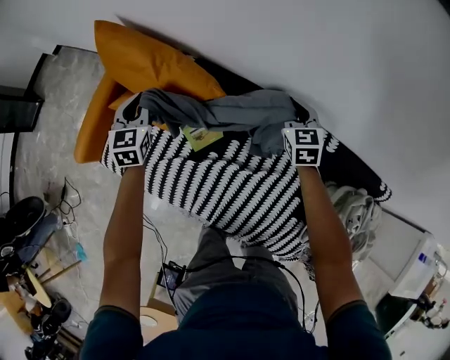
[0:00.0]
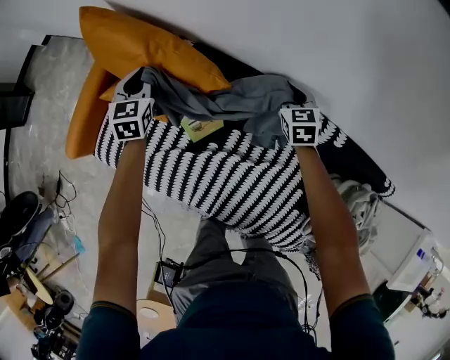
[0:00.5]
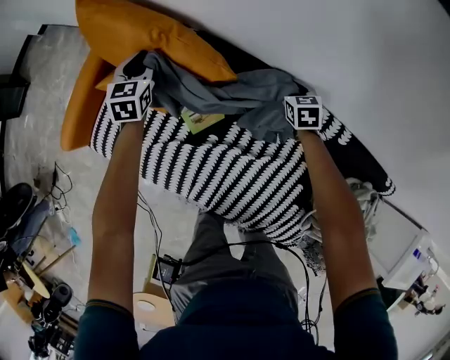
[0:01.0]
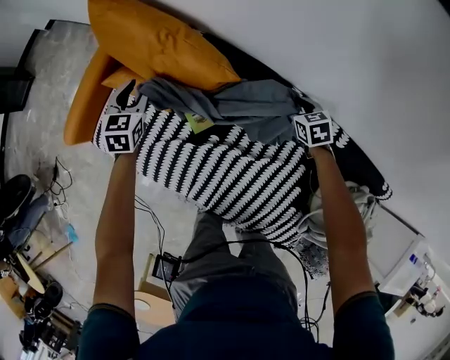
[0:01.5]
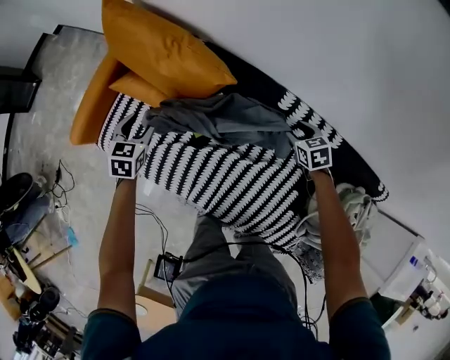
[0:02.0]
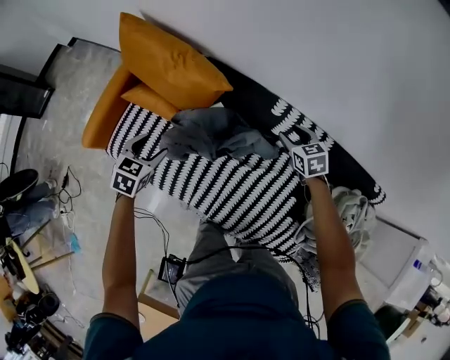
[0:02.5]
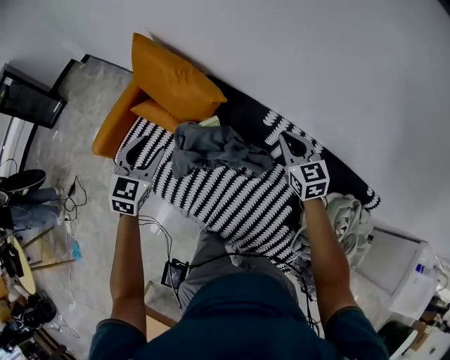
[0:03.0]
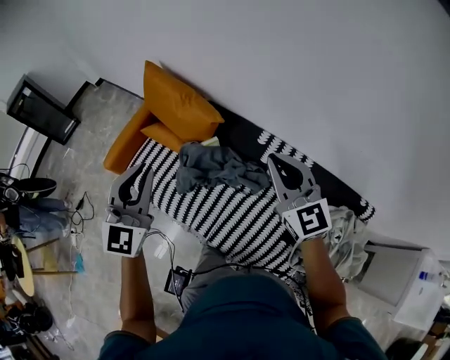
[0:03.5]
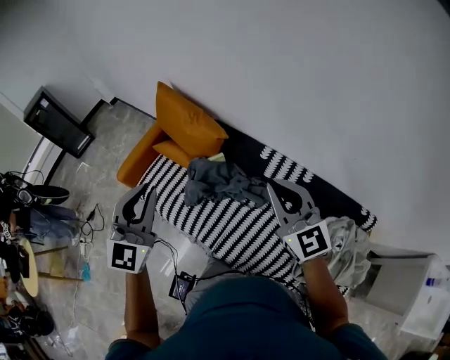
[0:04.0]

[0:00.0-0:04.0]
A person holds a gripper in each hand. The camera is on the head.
0:00.0 to 0:02.0: The right gripper goes some 15 cm downward and backward, rotates about 30 degrees, and opens up; the left gripper goes roughly 15 cm backward and downward, rotates roughly 20 degrees, and opens.
0:02.0 to 0:04.0: The two grippers go some 60 cm upward and backward. The left gripper points its fingers about 40 degrees further upward, and closes its fingers; the right gripper points its fingers some 60 degrees further upward, and closes up.

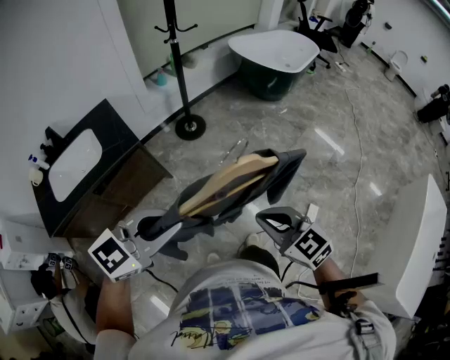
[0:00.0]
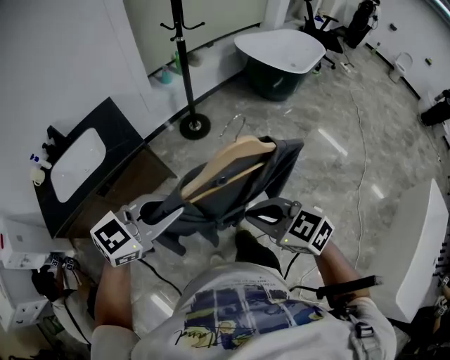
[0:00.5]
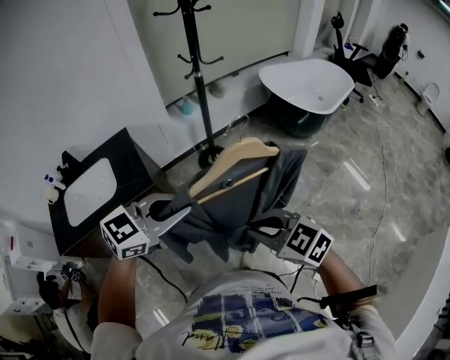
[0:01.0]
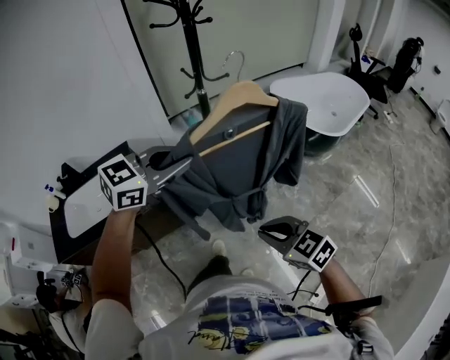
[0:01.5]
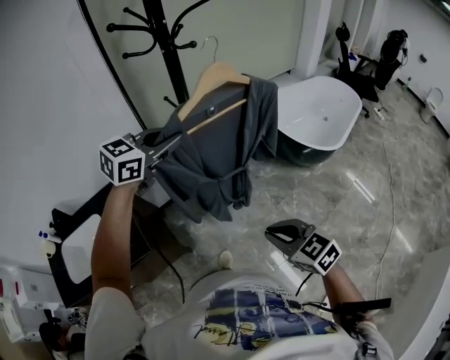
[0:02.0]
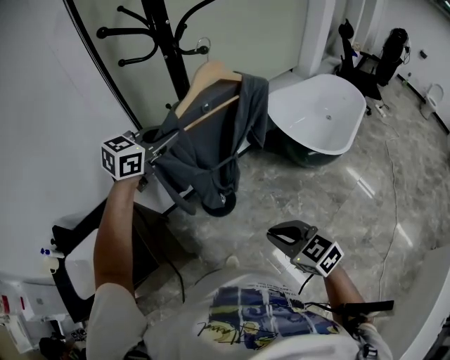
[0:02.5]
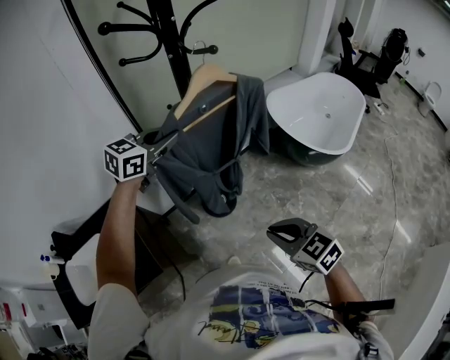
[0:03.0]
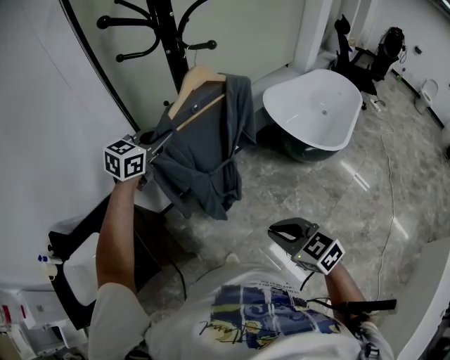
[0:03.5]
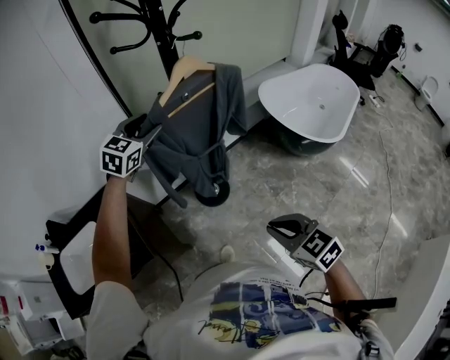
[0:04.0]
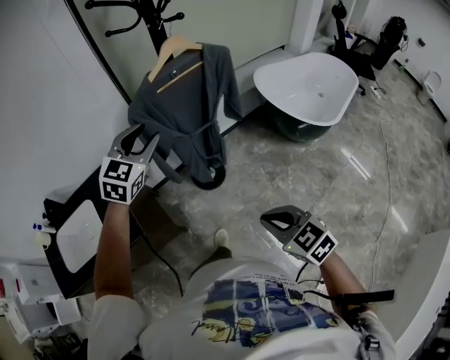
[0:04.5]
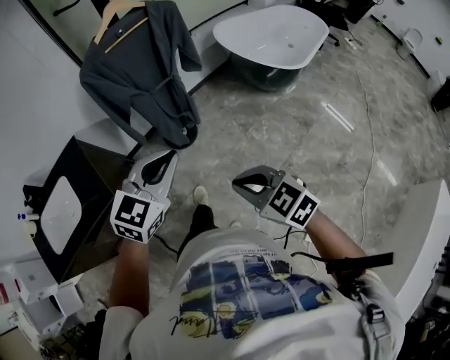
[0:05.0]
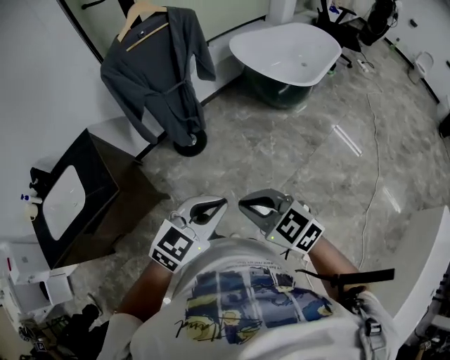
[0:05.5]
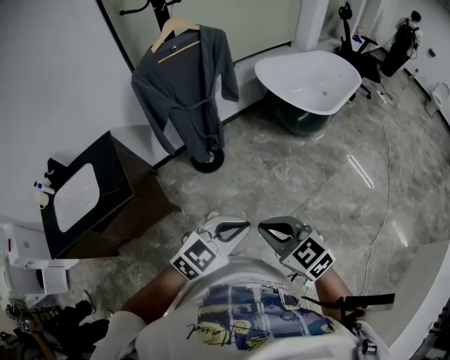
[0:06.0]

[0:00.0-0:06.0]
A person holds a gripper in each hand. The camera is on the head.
0:00.0 to 0:02.0: The two grippers travel together, forward, roughly 60 cm.
0:02.0 to 0:04.0: The left gripper travels forward, to the left and downward by some 20 cm, swivels about 20 degrees, and opens its fingers; the right gripper is displaced forward by roughly 5 cm.
0:04.0 to 0:06.0: The left gripper moves backward and to the right, roughly 60 cm, changes its angle by roughly 30 degrees, and closes; the right gripper is displaced backward by some 20 cm.

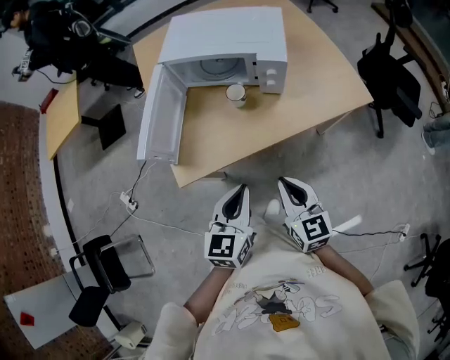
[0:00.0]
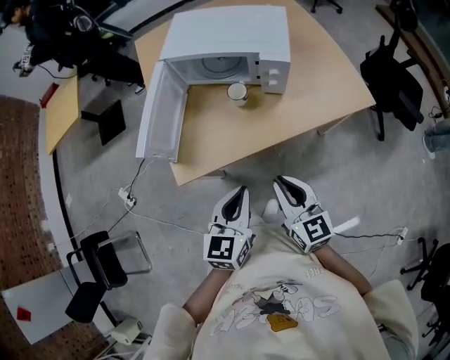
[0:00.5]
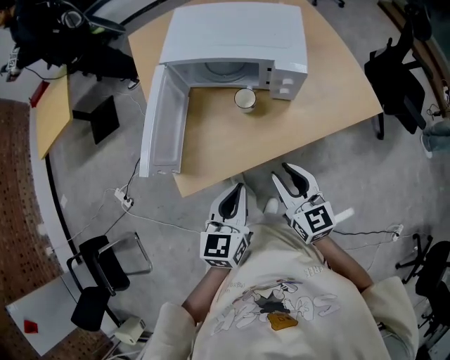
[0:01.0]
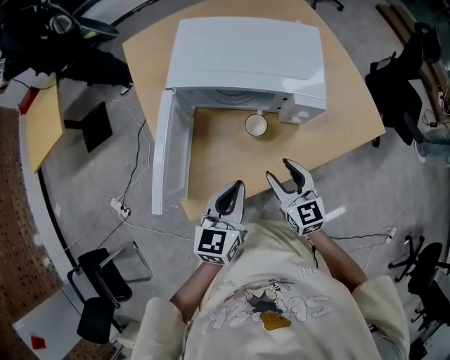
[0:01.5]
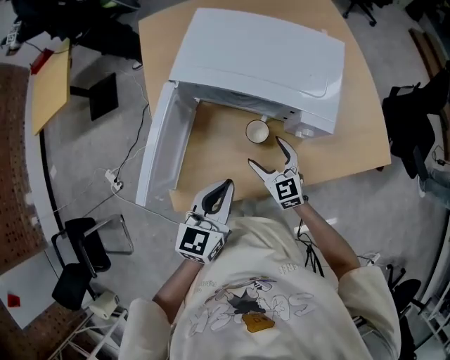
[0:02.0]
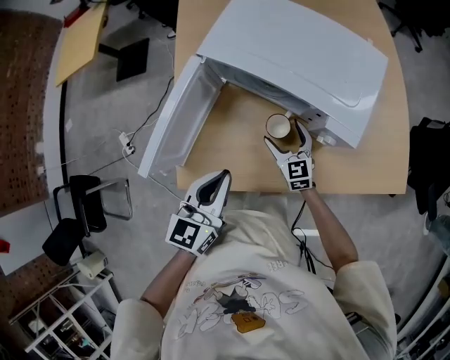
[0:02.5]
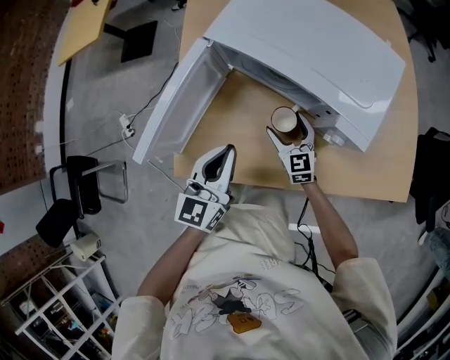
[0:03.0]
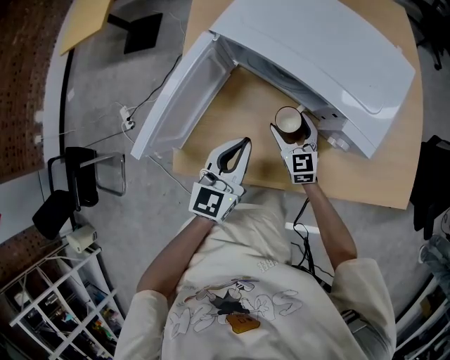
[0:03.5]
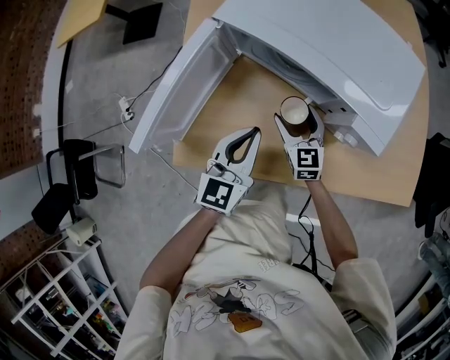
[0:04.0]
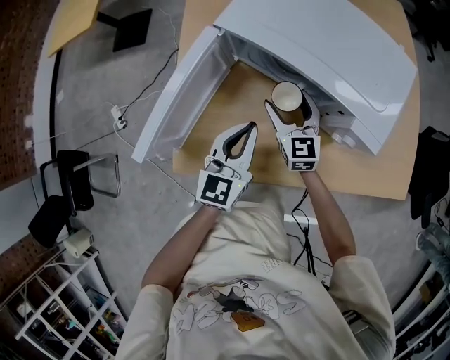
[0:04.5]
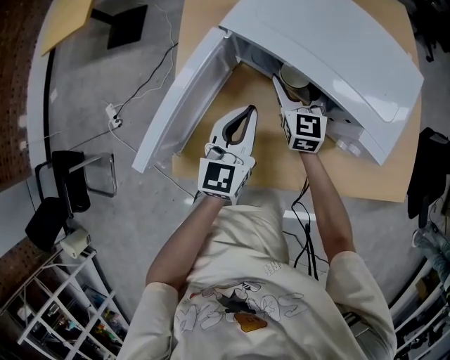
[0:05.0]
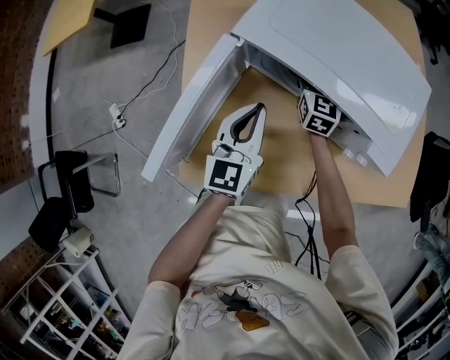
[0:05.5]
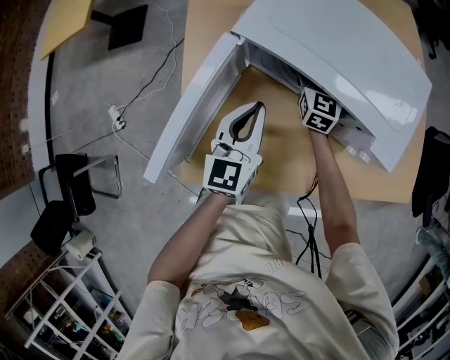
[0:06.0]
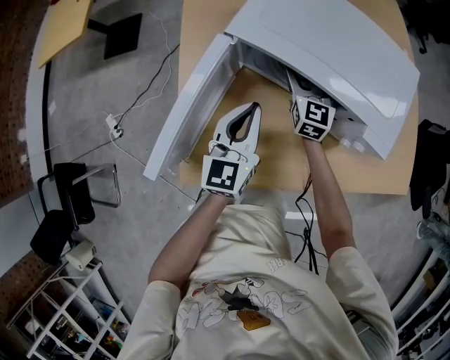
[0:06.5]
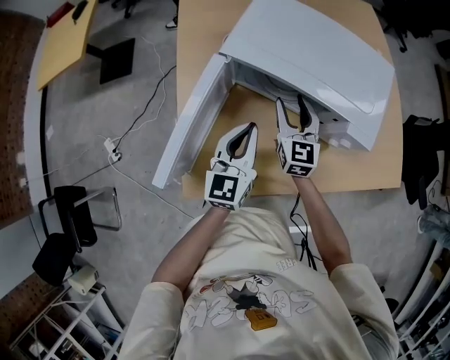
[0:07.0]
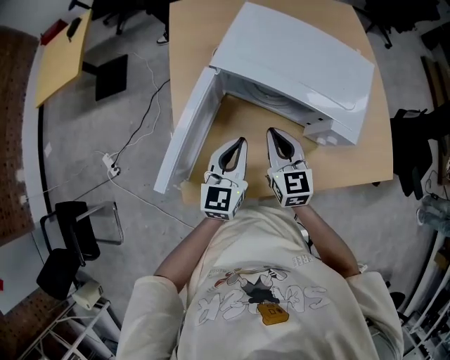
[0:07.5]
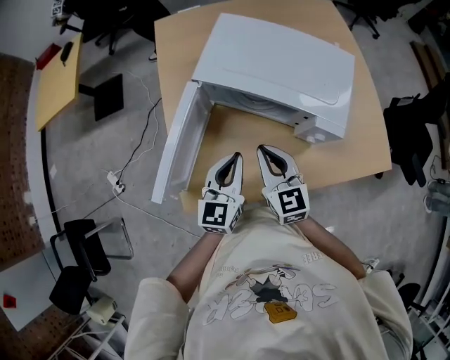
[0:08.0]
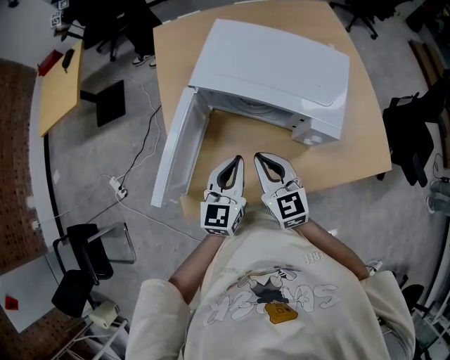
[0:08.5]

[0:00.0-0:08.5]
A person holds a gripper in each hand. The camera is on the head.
0:00.0 to 0:02.0: Both grippers travel together forward, approximately 25 cm. The right gripper turns by some 20 degrees, and opens.
0:02.0 to 0:04.0: Both grippers move forward and downward, roughly 10 cm. The left gripper swivels roughly 20 degrees.
0:04.0 to 0:06.5: The right gripper travels forward and upward by about 20 cm, and changes its angle by approximately 20 degrees. Meanwhile the left gripper heads forward and to the left, covering some 10 cm.
0:06.5 to 0:08.5: The left gripper travels backward by roughly 10 cm. The right gripper goes about 25 cm backward and upward, turns by roughly 20 degrees, and closes up.

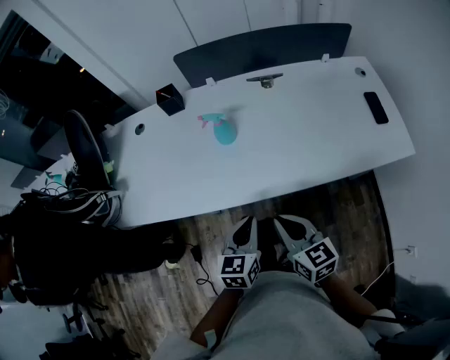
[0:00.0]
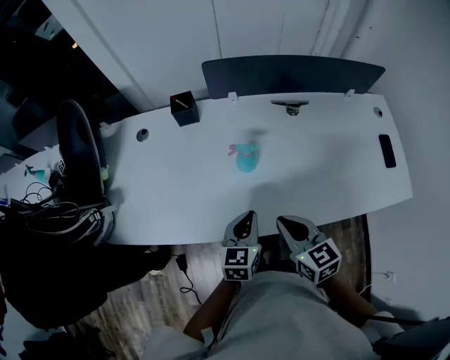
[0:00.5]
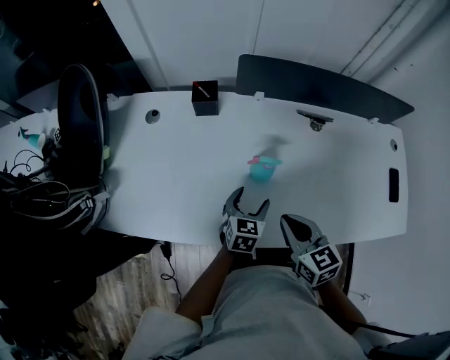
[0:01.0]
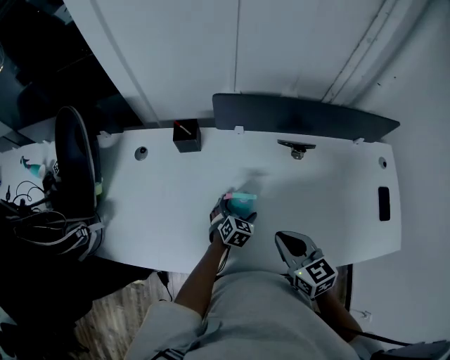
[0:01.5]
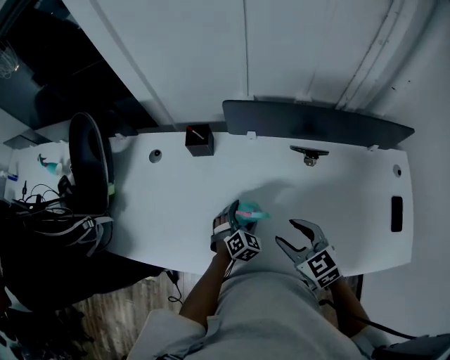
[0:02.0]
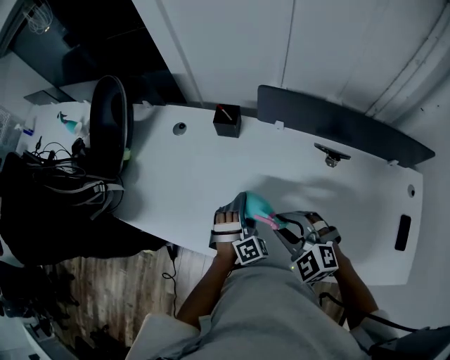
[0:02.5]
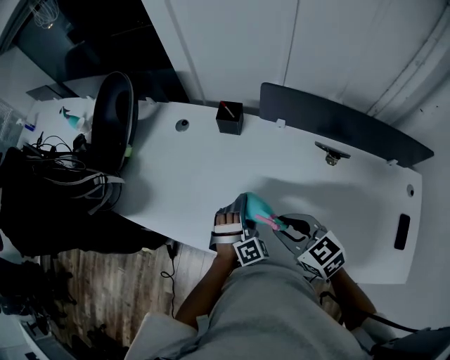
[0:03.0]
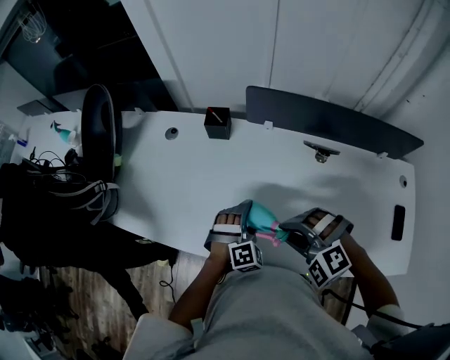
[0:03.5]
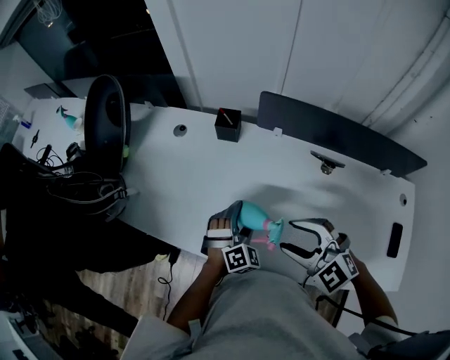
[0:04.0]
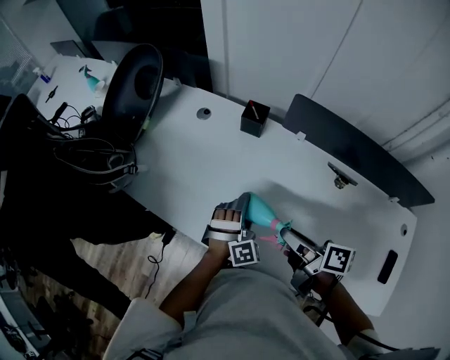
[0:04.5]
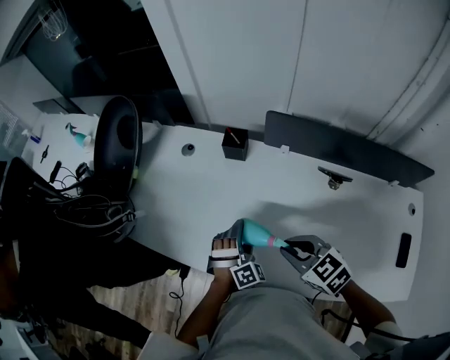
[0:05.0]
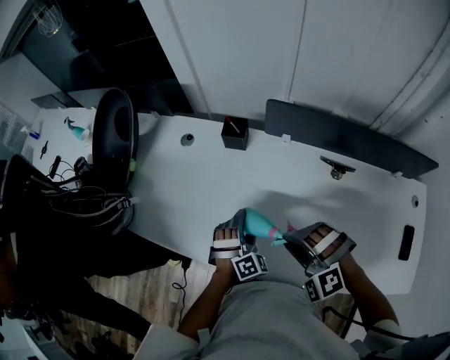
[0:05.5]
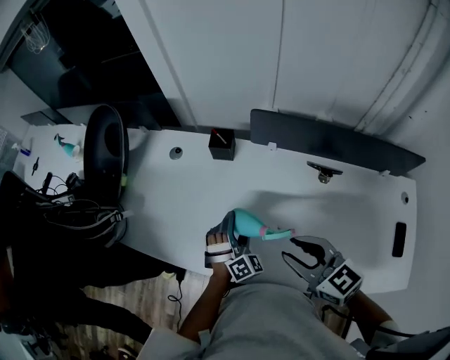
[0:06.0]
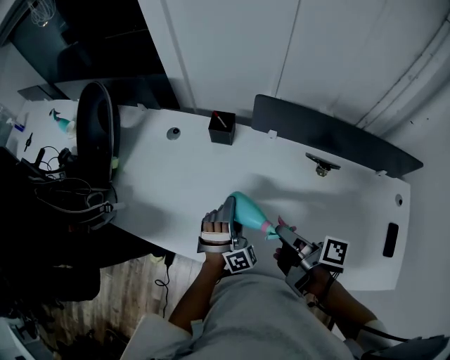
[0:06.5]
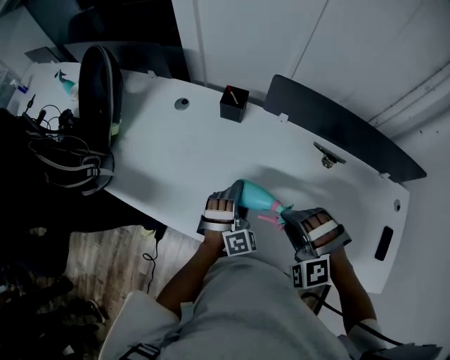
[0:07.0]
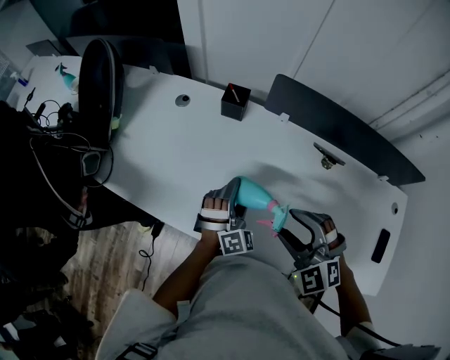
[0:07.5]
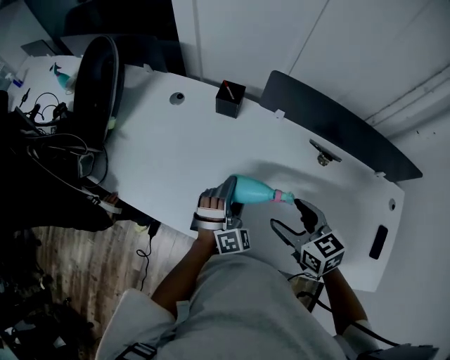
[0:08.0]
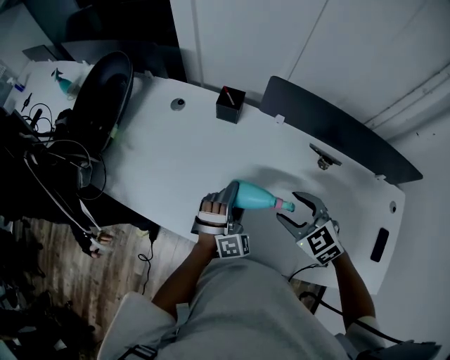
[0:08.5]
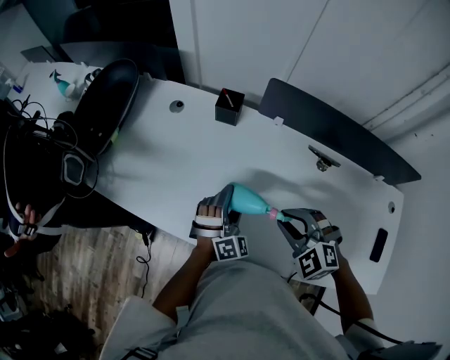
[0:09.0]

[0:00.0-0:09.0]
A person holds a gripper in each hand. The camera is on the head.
0:00.0 to 0:02.0: The two grippers go some 30 cm forward. The left gripper rolls clockwise, seen from behind, by roughly 40 degrees, and opens up; the right gripper changes its angle by roughly 30 degrees, and opens.
0:02.0 to 0:04.5: The left gripper is displaced to the left and upward by some 10 cm, and changes its angle by some 30 degrees, while the right gripper shifts about 5 cm to the left, and twists roughly 60 degrees clockwise, seen from behind.
0:04.5 to 0:07.0: The right gripper rolls counterclockwise, seen from behind, by about 130 degrees, and closes.
0:07.0 to 0:09.0: The right gripper swivels roughly 30 degrees, and opens, then closes once more.
